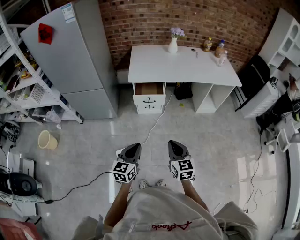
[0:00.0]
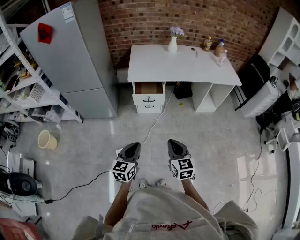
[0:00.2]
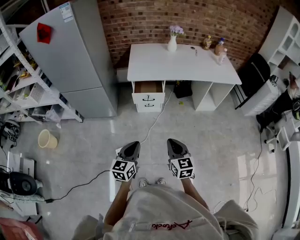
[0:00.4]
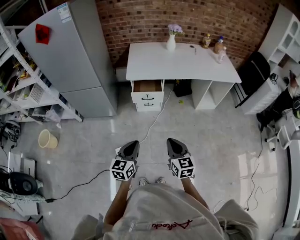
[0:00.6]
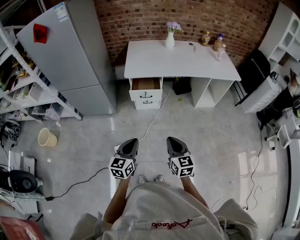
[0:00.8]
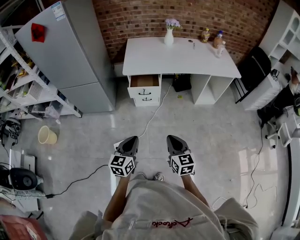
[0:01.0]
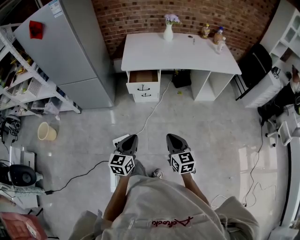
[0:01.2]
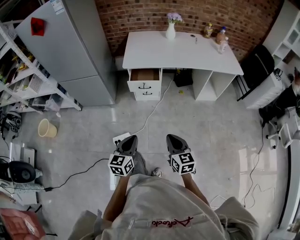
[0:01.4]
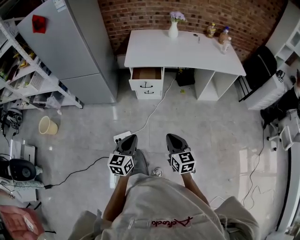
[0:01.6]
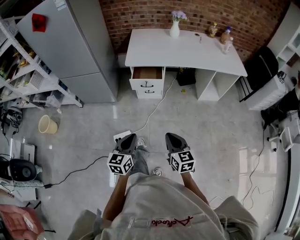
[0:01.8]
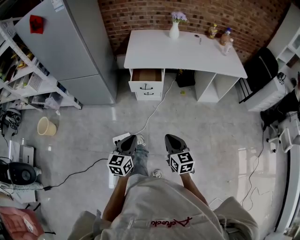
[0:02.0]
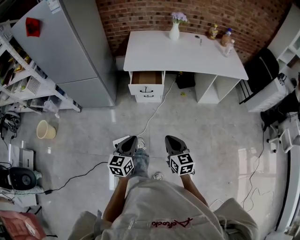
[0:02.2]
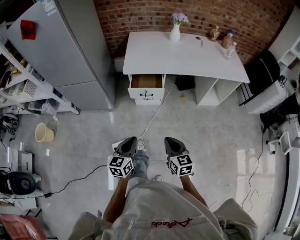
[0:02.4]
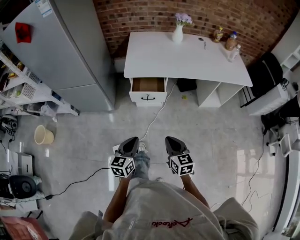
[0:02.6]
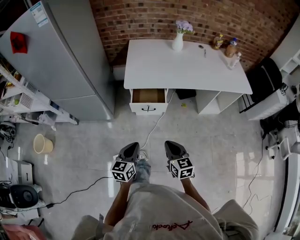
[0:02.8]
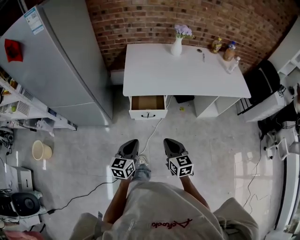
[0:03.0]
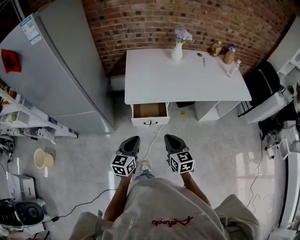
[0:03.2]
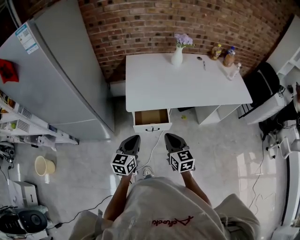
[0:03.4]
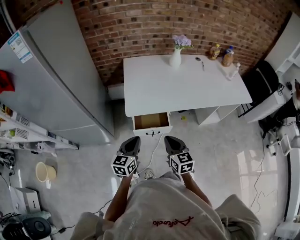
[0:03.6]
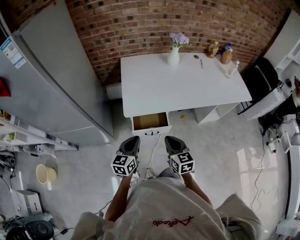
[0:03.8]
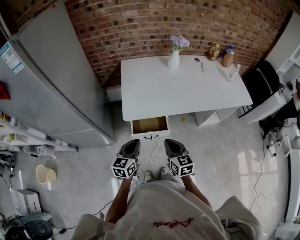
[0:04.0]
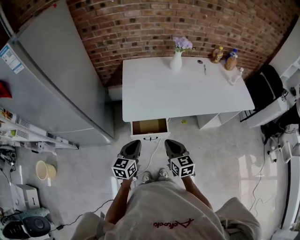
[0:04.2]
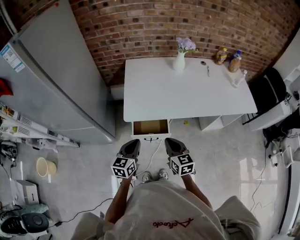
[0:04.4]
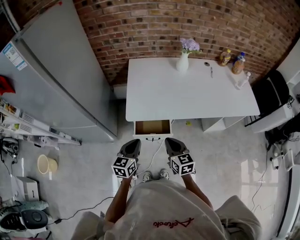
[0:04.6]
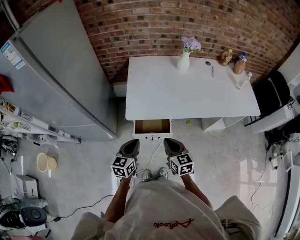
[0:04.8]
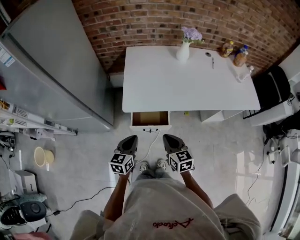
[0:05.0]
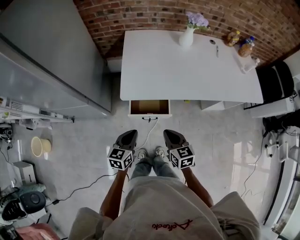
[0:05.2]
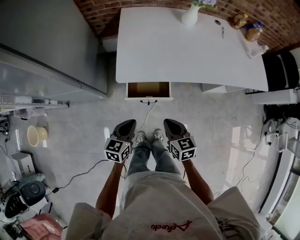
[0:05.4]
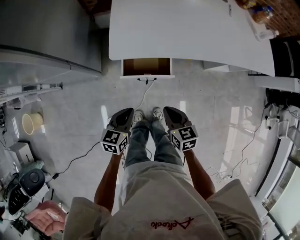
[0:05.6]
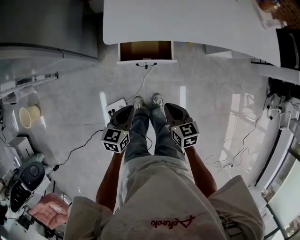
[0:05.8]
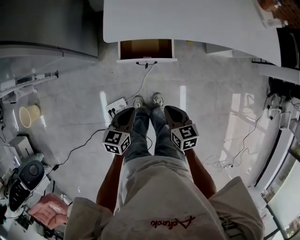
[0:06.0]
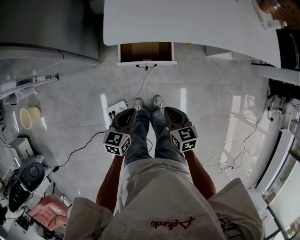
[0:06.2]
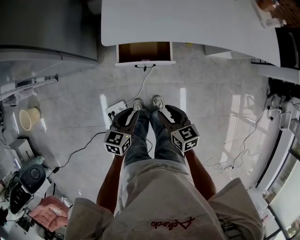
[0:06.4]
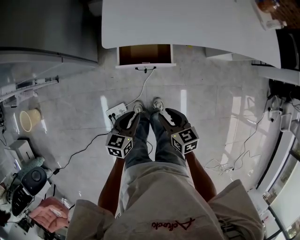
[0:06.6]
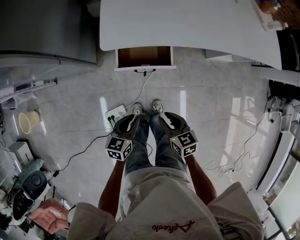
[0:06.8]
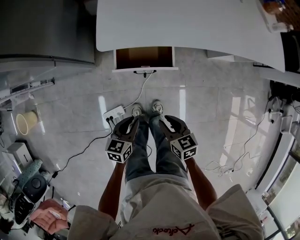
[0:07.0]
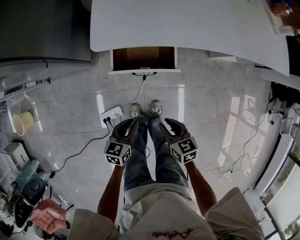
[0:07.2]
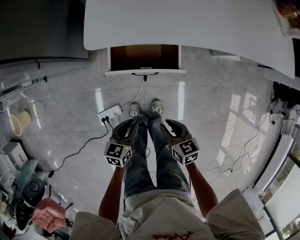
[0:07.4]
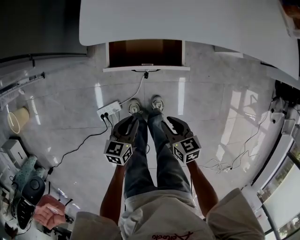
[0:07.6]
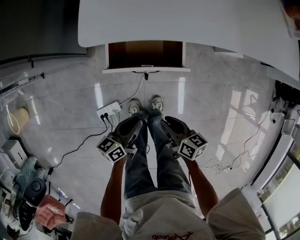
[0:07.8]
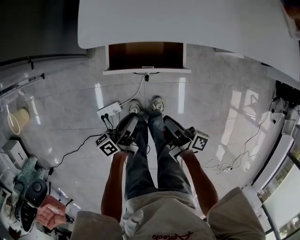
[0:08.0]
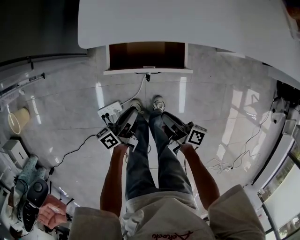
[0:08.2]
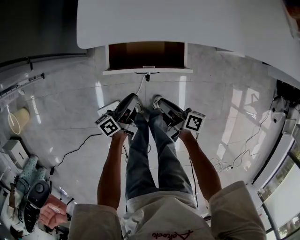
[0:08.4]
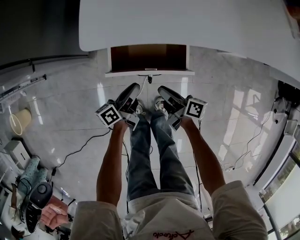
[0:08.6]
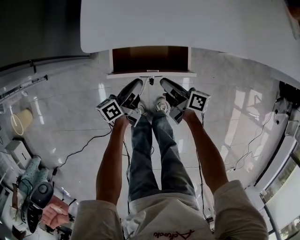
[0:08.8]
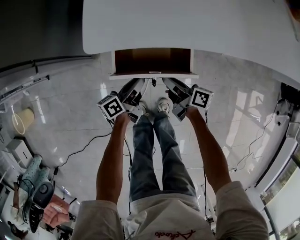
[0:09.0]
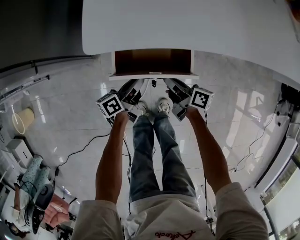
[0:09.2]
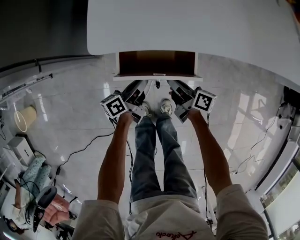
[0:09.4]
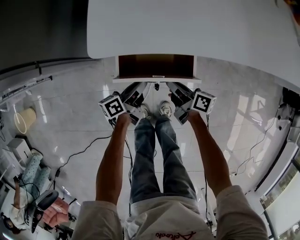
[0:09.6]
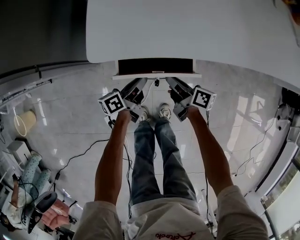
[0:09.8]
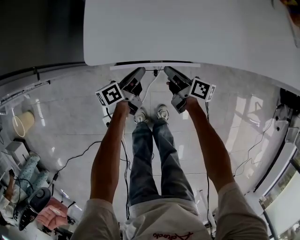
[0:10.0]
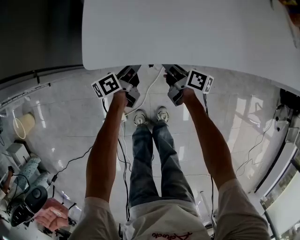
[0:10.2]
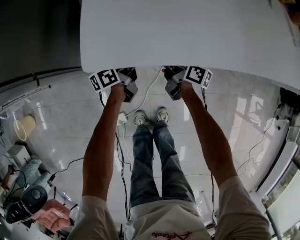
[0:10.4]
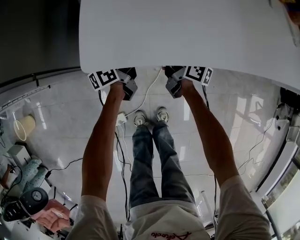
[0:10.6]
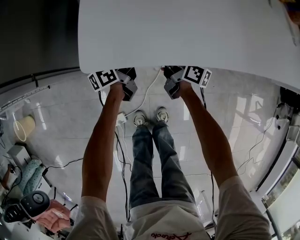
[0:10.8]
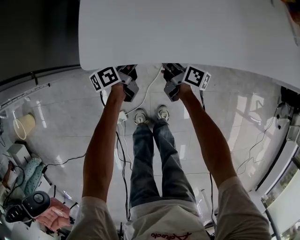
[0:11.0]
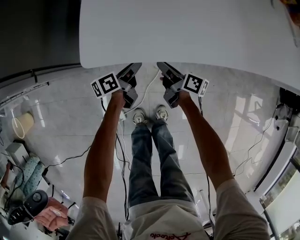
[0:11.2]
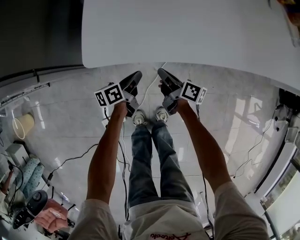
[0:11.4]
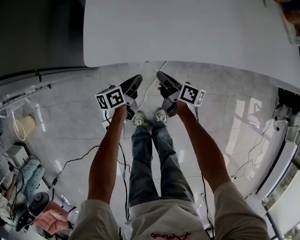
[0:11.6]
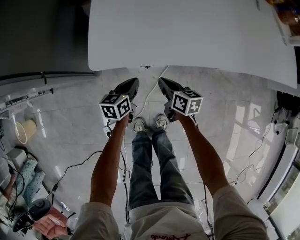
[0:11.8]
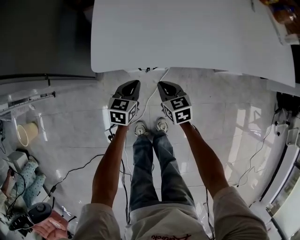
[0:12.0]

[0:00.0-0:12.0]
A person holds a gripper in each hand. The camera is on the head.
0:00.0 to 0:01.6: The right gripper ends up about 5 cm from where it was.
0:01.6 to 0:03.0: Both grippers move forward, about 25 cm.
0:03.0 to 0:04.4: The grippers both shift forward by some 20 cm.
0:04.4 to 0:06.0: The two grippers go some 20 cm downward and backward. The right gripper changes its angle by roughly 20 degrees; the left gripper changes its angle by approximately 20 degrees.
0:06.0 to 0:07.6: Both grippers move downward, approximately 15 cm. The right gripper opens up.
0:07.6 to 0:09.0: The two grippers go approximately 20 cm forward. The right gripper tilts its fingers some 30 degrees upward; the left gripper turns by approximately 40 degrees.
0:09.0 to 0:10.4: Both grippers move forward, about 15 cm.
0:10.4 to 0:12.0: The grippers both shift backward by approximately 10 cm. The right gripper rolls counterclockwise, seen from behind, by roughly 50 degrees, while the left gripper rotates around the line of its fingers by approximately 50 degrees, clockwise from behind.

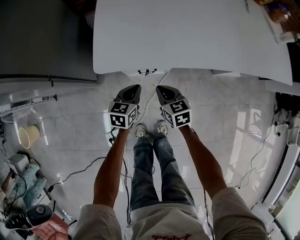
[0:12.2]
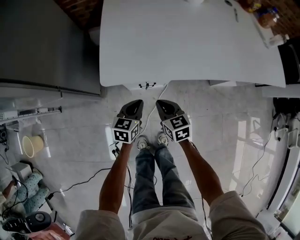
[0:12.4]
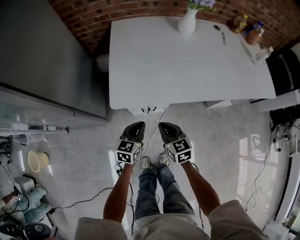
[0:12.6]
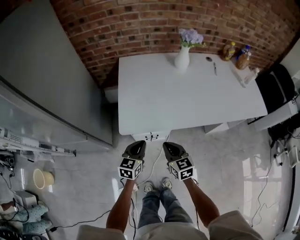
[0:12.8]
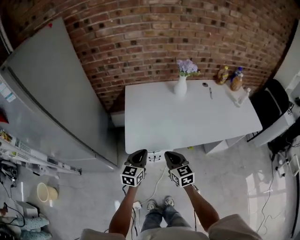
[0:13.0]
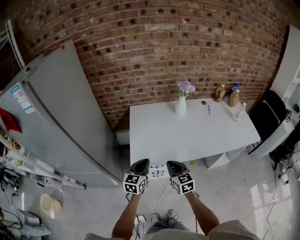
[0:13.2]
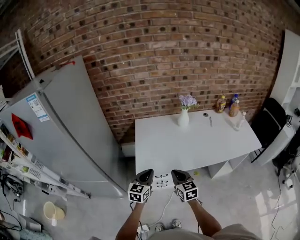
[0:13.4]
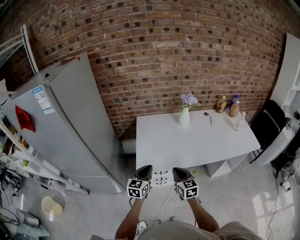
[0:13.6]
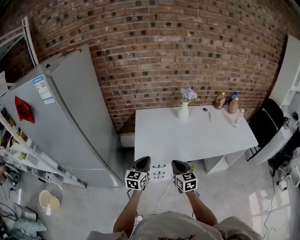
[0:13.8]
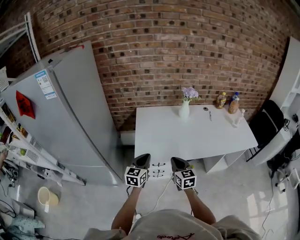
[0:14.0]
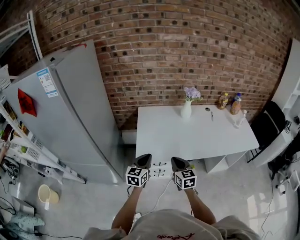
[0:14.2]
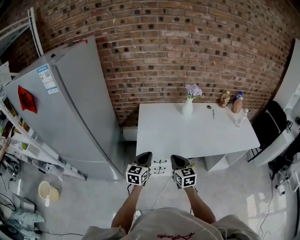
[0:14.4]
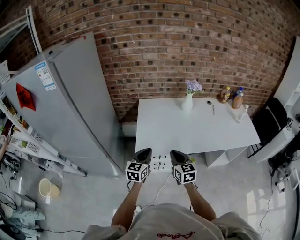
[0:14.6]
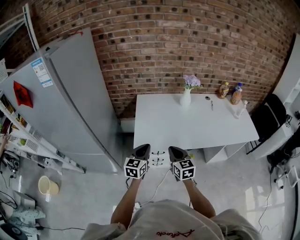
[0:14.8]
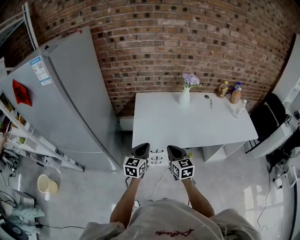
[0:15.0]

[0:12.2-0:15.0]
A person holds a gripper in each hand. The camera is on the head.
0:12.2 to 0:13.6: Both grippers move upward, some 40 cm. The left gripper rotates approximately 30 degrees. The right gripper turns by some 30 degrees.
0:13.6 to 0:15.0: The grippers stay close to where they were, moving slightly.

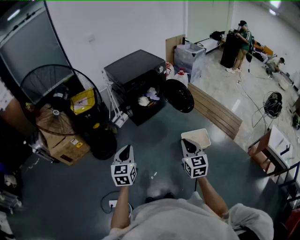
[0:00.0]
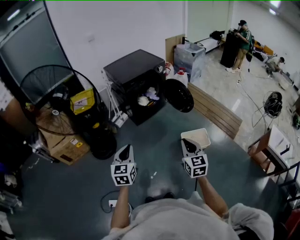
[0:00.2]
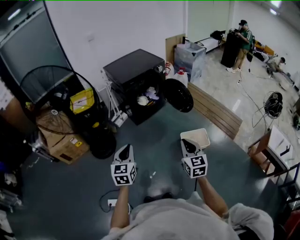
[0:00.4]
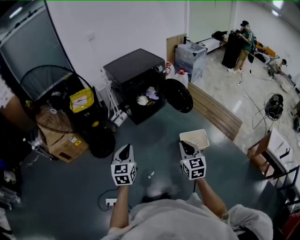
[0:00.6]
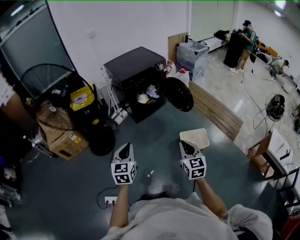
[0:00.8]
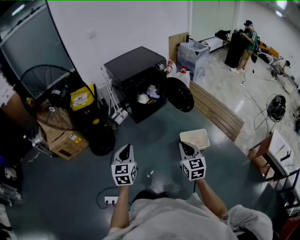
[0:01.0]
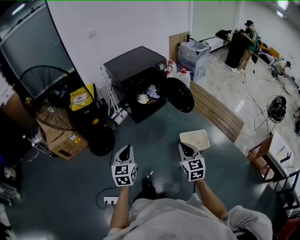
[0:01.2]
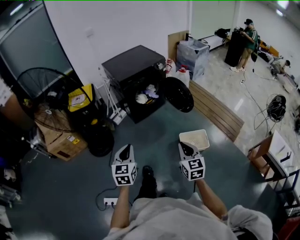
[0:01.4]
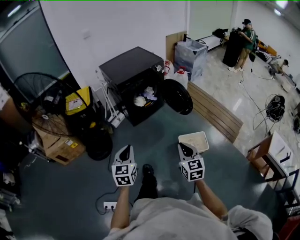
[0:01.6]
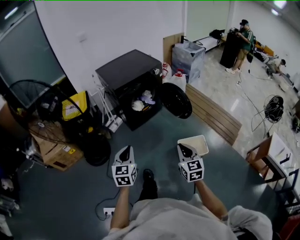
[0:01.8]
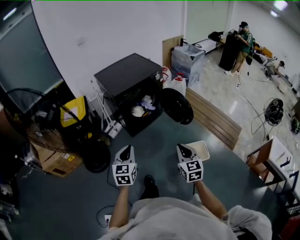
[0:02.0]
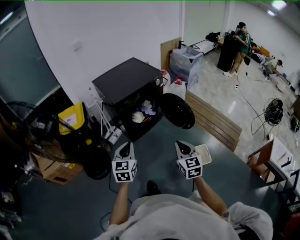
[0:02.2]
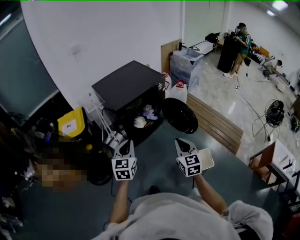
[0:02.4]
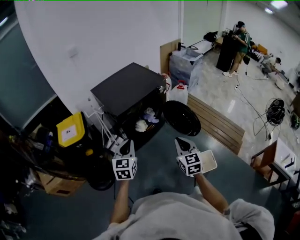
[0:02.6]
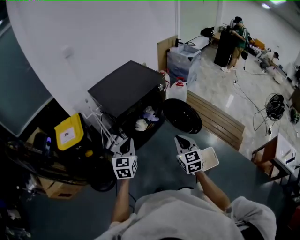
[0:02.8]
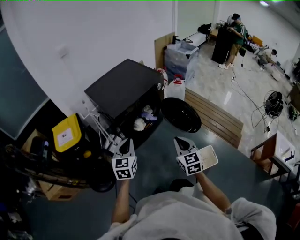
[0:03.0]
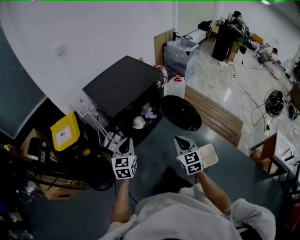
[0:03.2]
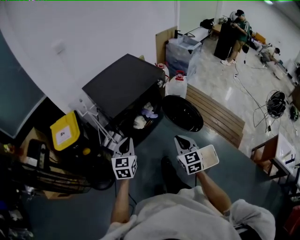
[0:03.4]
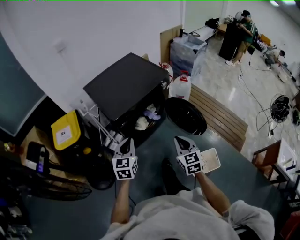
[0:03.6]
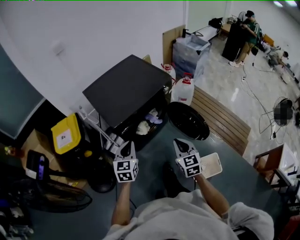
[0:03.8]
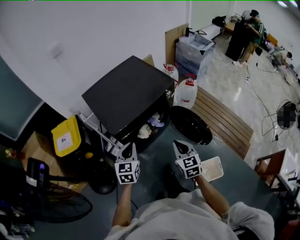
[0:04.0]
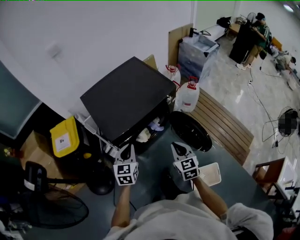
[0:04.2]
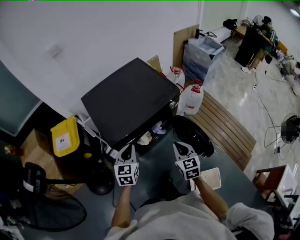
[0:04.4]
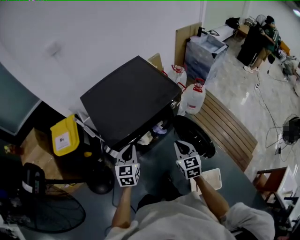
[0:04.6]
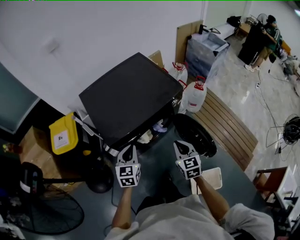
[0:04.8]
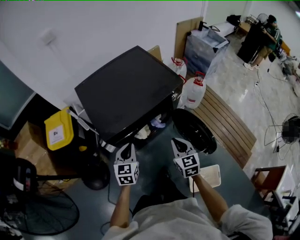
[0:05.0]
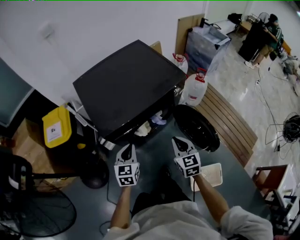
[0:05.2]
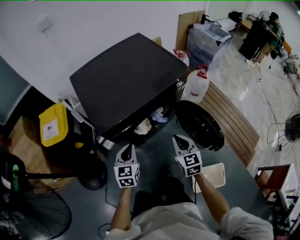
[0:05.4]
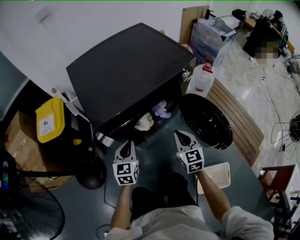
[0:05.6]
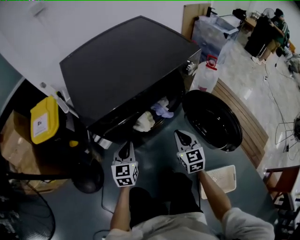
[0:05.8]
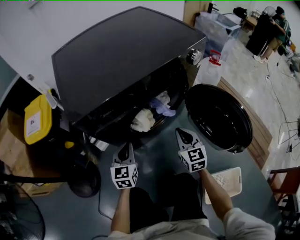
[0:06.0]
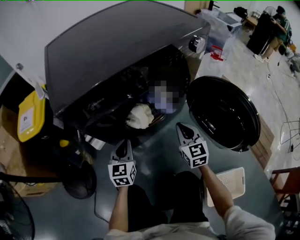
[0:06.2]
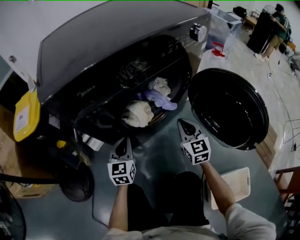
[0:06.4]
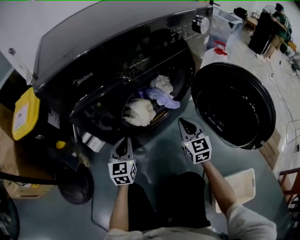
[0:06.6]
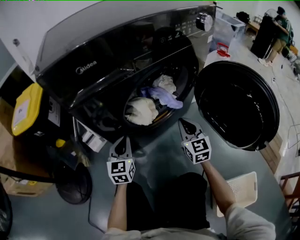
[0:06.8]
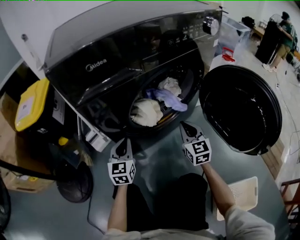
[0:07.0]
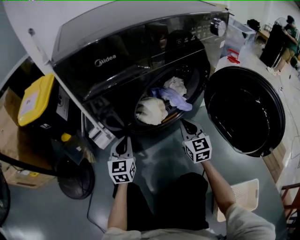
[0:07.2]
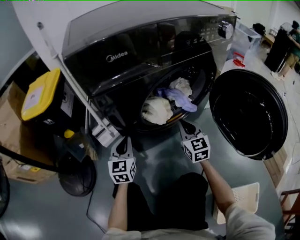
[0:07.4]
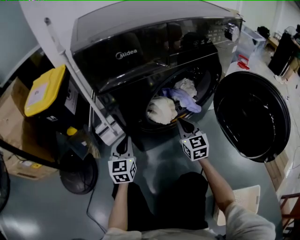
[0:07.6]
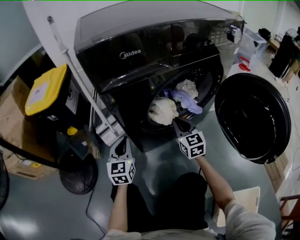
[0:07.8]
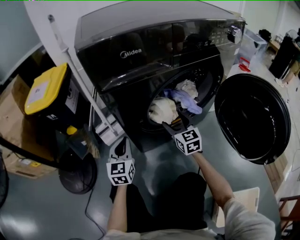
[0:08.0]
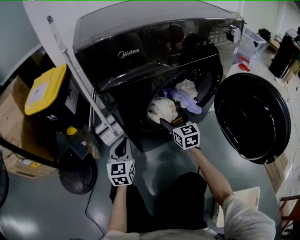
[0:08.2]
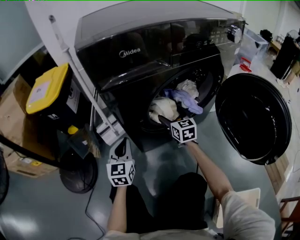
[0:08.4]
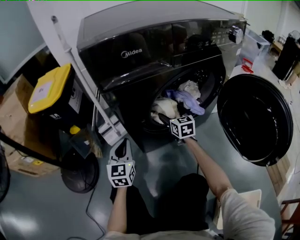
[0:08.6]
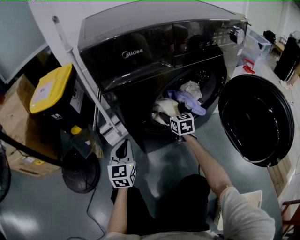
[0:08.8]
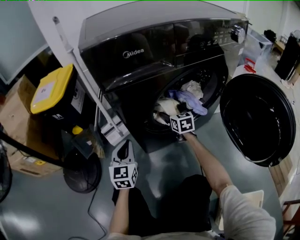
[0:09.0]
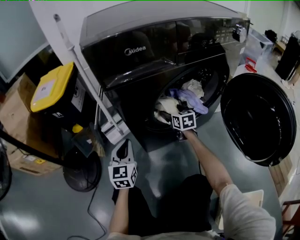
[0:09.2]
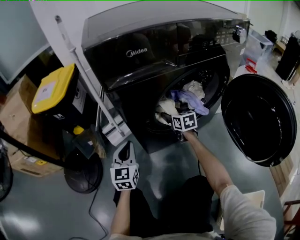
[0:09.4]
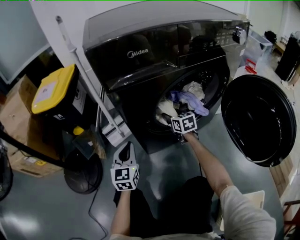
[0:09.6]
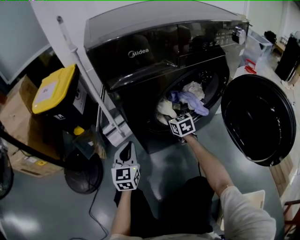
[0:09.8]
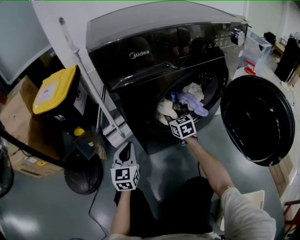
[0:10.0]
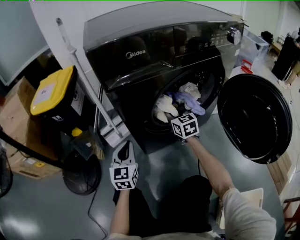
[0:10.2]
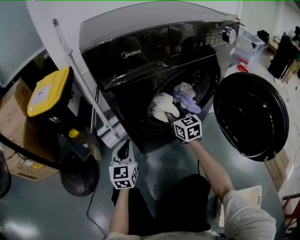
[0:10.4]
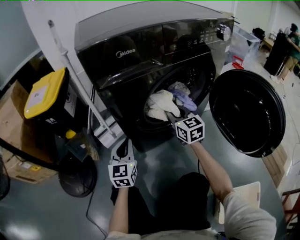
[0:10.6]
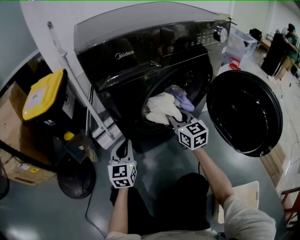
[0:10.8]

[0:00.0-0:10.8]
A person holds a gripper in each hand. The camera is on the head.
0:00.0 to 0:01.6: The right gripper shifts approximately 5 cm forward. Meanwhile the left gripper goes some 10 cm forward and to the right.
0:01.6 to 0:03.0: Both grippers move forward, roughly 35 cm.
0:03.0 to 0:04.6: Both grippers travel together forward, about 30 cm.
0:04.6 to 0:06.2: Both grippers move downward, about 40 cm.
0:06.2 to 0:07.8: The left gripper moves to the left and downward, about 15 cm. Meanwhile the right gripper is displaced to the left, downward and forward by about 20 cm.
0:07.8 to 0:09.2: The right gripper goes about 15 cm forward and downward, and opens.
0:09.2 to 0:10.8: The right gripper shifts approximately 20 cm upward and backward, swivels some 20 degrees, and closes.
